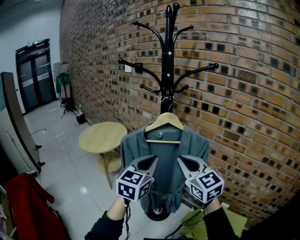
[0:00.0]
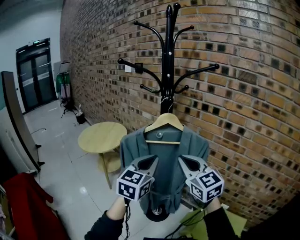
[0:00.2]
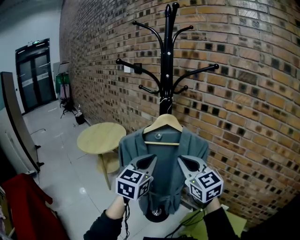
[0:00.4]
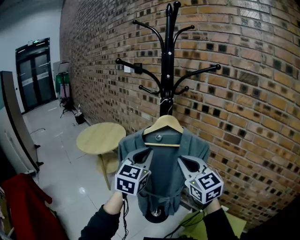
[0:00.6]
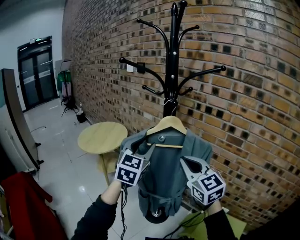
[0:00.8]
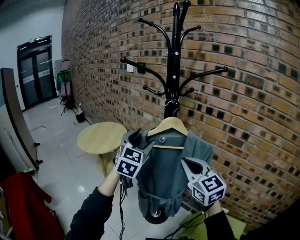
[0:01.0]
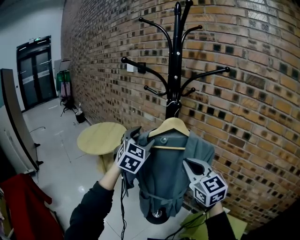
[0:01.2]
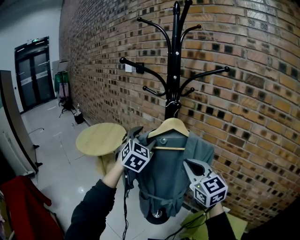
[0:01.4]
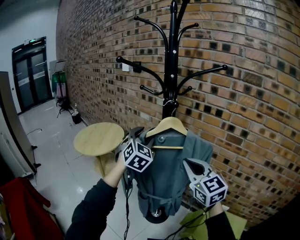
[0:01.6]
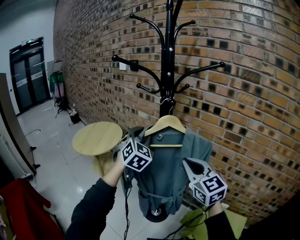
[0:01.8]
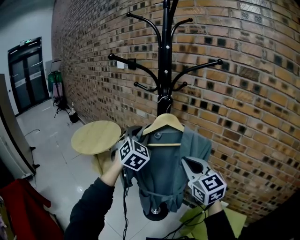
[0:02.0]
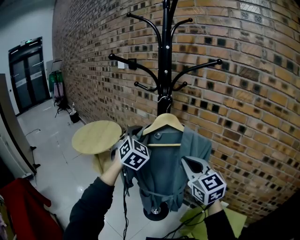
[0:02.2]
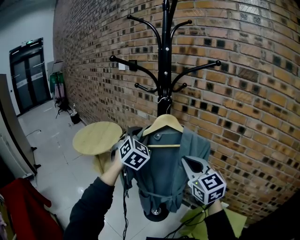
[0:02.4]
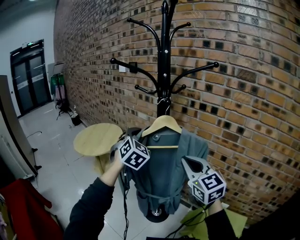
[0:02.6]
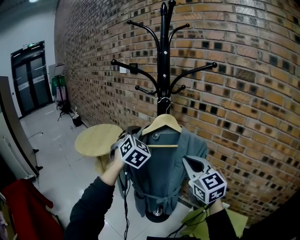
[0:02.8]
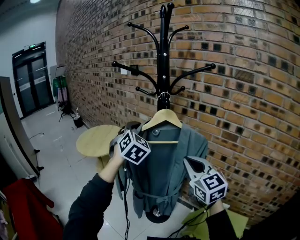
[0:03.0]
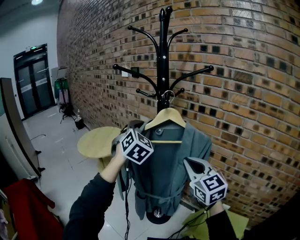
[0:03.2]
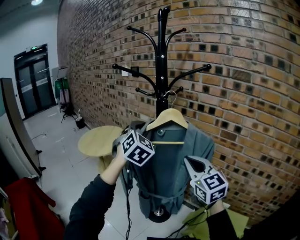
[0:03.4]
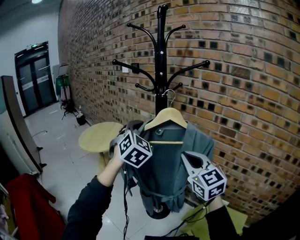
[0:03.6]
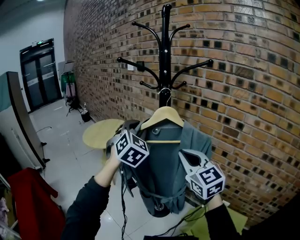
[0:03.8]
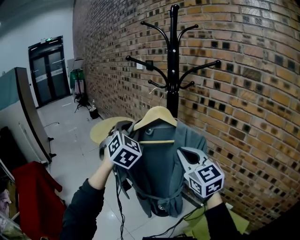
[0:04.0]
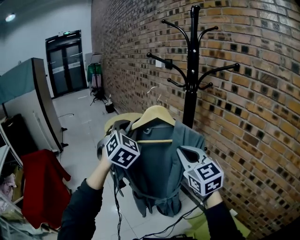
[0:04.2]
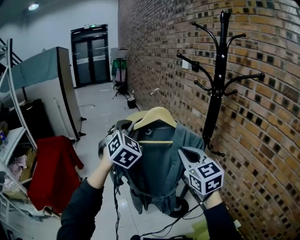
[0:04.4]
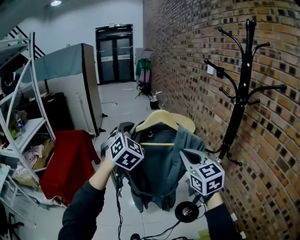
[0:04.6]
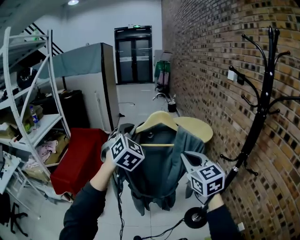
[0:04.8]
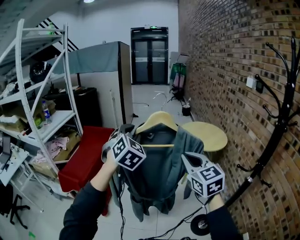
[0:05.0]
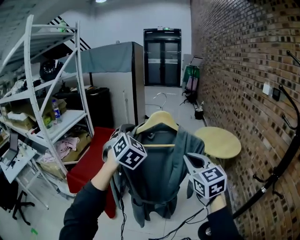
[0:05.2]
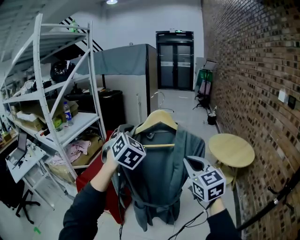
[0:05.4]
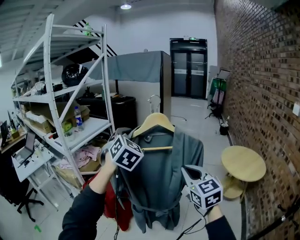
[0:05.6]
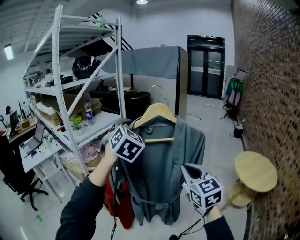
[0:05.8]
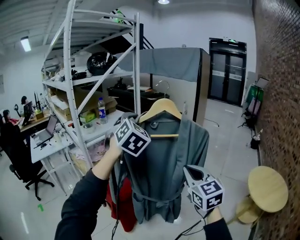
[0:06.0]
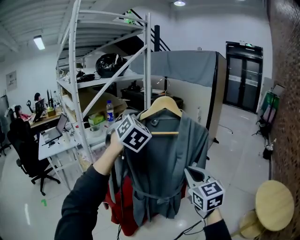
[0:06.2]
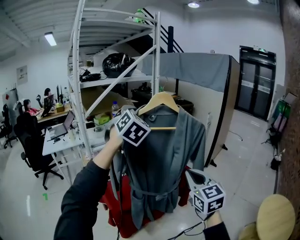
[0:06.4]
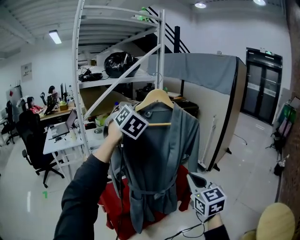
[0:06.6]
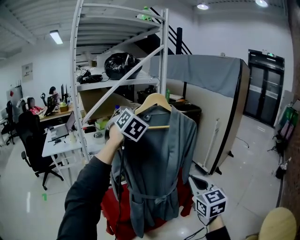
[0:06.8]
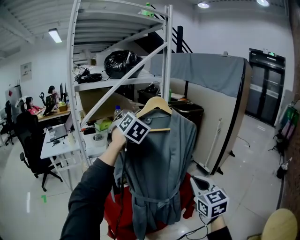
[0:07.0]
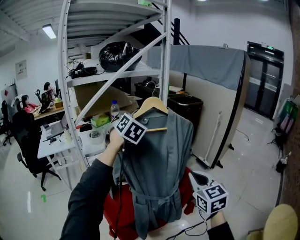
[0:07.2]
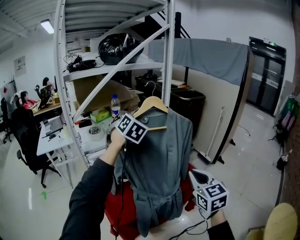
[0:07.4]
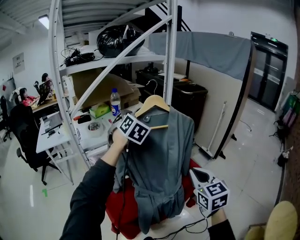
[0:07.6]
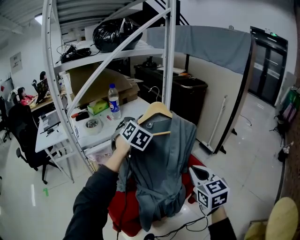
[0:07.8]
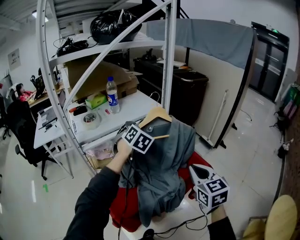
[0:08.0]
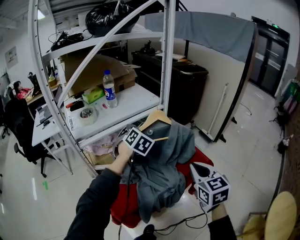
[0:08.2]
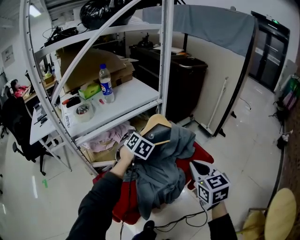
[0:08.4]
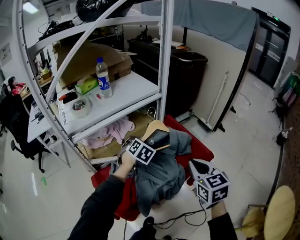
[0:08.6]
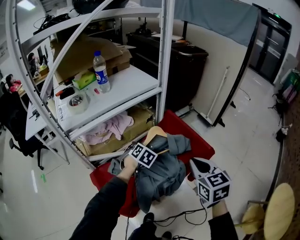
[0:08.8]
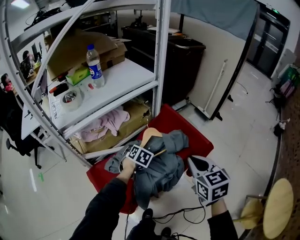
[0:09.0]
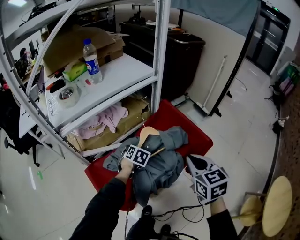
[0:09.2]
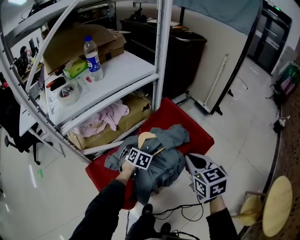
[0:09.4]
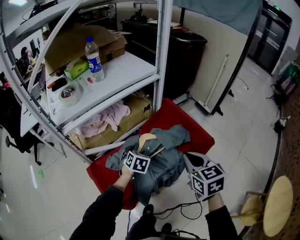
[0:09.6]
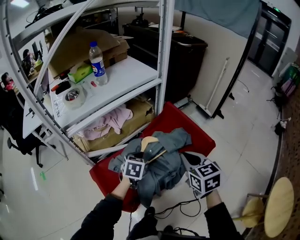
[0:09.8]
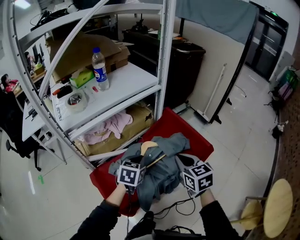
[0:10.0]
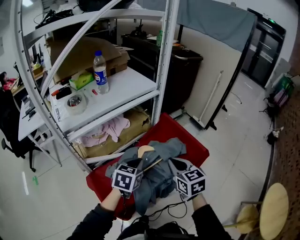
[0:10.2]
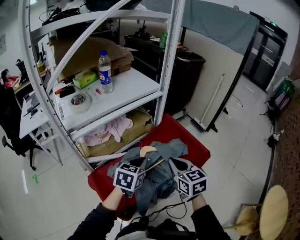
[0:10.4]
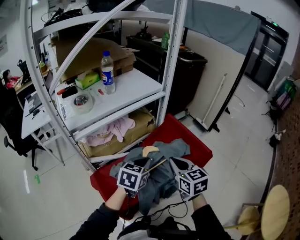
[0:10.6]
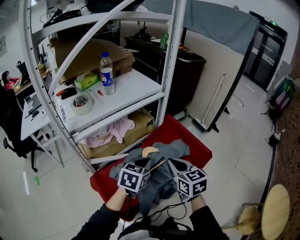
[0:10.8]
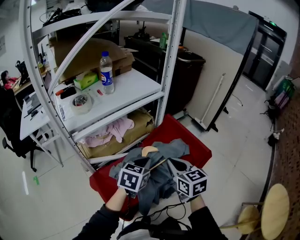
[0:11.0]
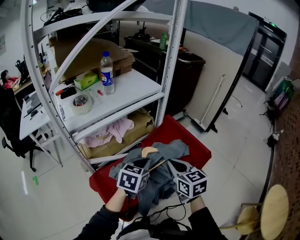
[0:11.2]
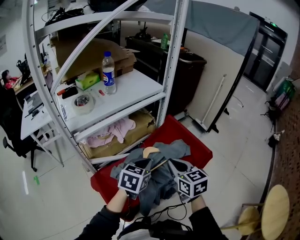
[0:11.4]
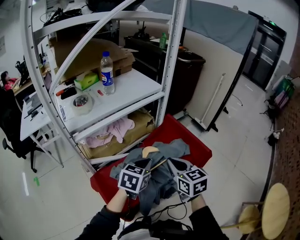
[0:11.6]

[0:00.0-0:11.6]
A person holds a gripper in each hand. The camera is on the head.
0:00.0 to 0:01.4: The left gripper heads forward, covering some 15 cm, swivels roughly 30 degrees, and opens up, while the right gripper shifts by some 5 cm.
0:01.4 to 0:02.8: The left gripper closes.
0:02.8 to 0:04.4: The left gripper shifts by roughly 30 cm, and changes its angle by approximately 30 degrees; the right gripper changes place by about 15 cm, and swivels some 30 degrees.
0:04.4 to 0:05.8: Both grippers are carried approximately 70 cm. The right gripper changes its angle by some 50 degrees. The left gripper changes its angle by approximately 50 degrees.
0:05.8 to 0:07.2: The two grippers travel together, roughly 50 cm. The right gripper rotates some 20 degrees; the left gripper changes its angle by roughly 30 degrees.
0:07.2 to 0:08.8: The left gripper goes some 50 cm downward, and angles its fingers downward, by roughly 40 degrees. The right gripper moves downward and forward, roughly 20 cm.
0:08.8 to 0:10.2: The right gripper goes approximately 10 cm to the left and downward; the left gripper shifts roughly 15 cm backward and upward, rotates roughly 30 degrees, and opens, then closes once more.
0:10.2 to 0:11.6: The grippers move only a little.

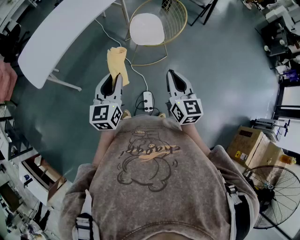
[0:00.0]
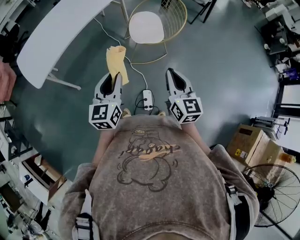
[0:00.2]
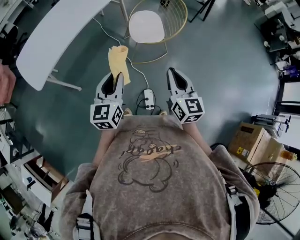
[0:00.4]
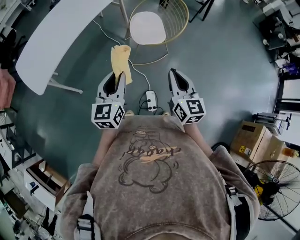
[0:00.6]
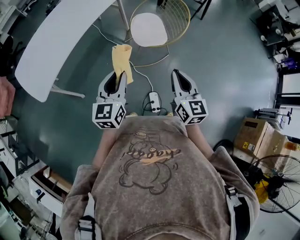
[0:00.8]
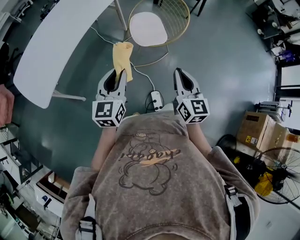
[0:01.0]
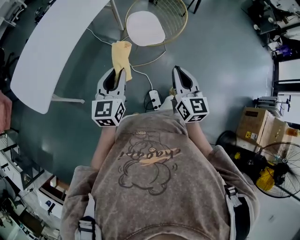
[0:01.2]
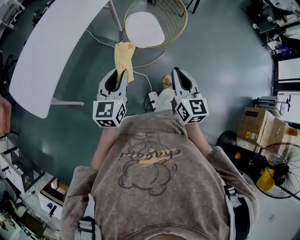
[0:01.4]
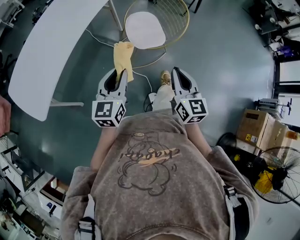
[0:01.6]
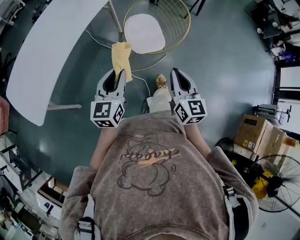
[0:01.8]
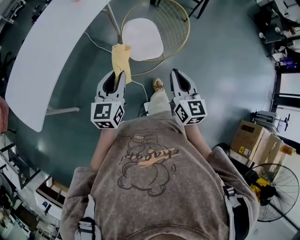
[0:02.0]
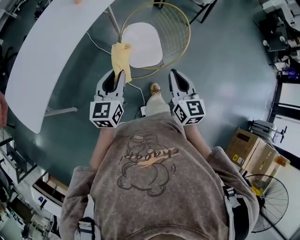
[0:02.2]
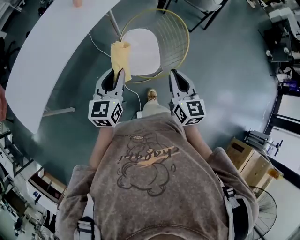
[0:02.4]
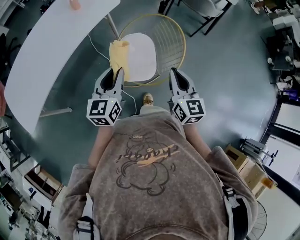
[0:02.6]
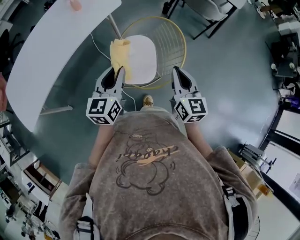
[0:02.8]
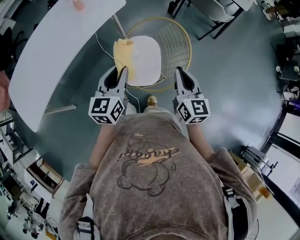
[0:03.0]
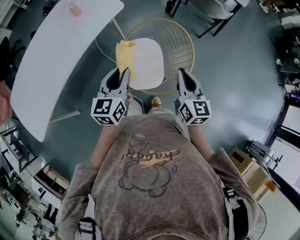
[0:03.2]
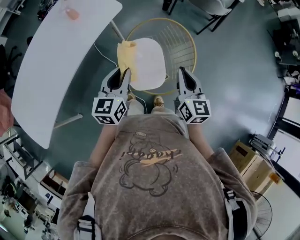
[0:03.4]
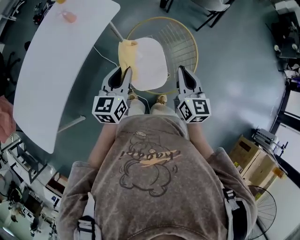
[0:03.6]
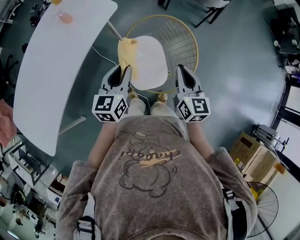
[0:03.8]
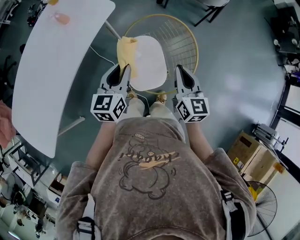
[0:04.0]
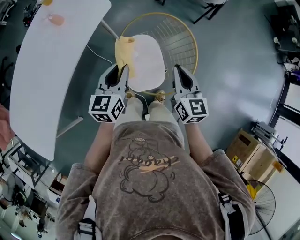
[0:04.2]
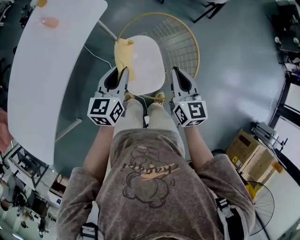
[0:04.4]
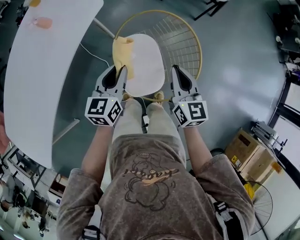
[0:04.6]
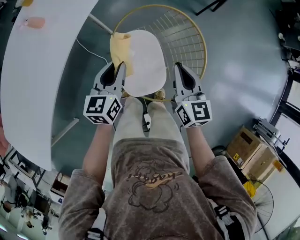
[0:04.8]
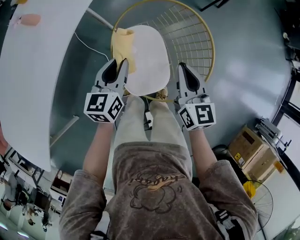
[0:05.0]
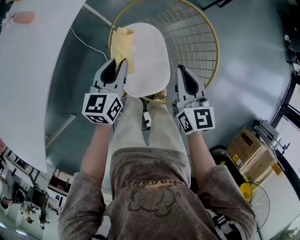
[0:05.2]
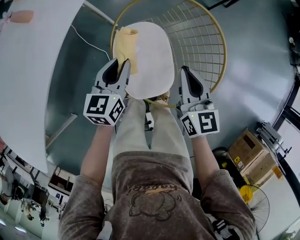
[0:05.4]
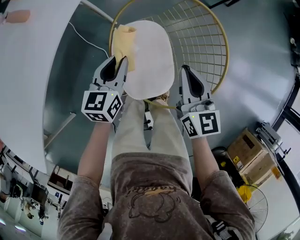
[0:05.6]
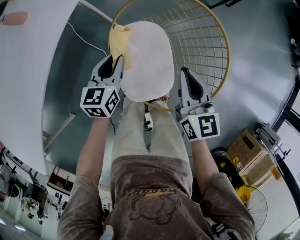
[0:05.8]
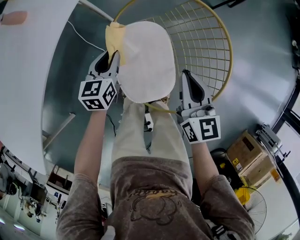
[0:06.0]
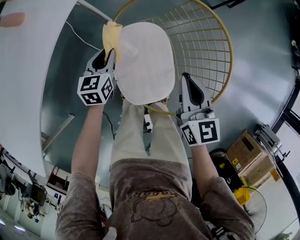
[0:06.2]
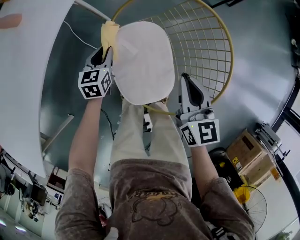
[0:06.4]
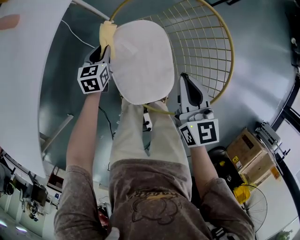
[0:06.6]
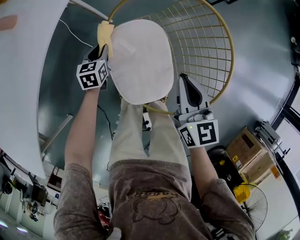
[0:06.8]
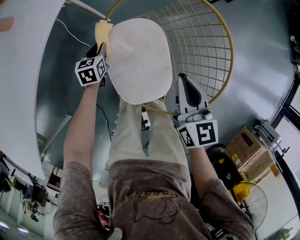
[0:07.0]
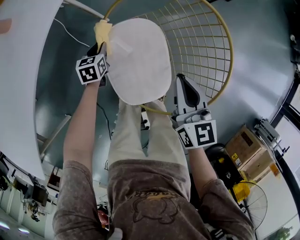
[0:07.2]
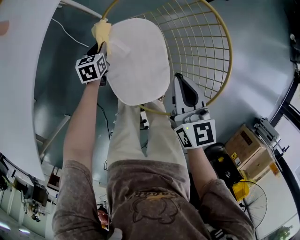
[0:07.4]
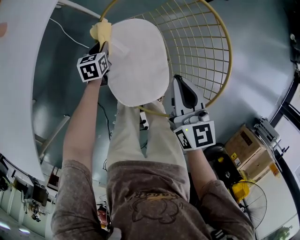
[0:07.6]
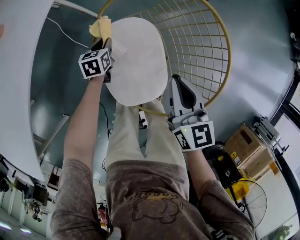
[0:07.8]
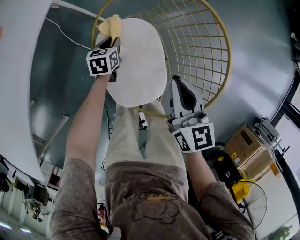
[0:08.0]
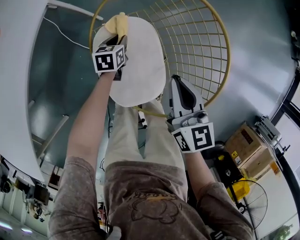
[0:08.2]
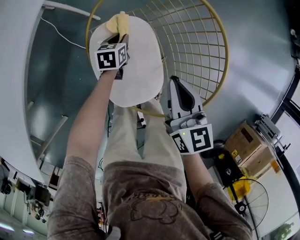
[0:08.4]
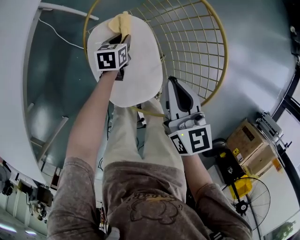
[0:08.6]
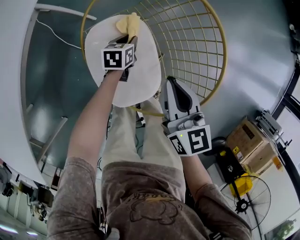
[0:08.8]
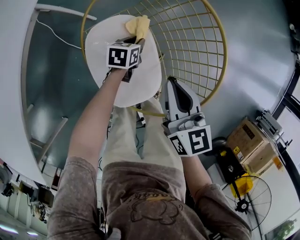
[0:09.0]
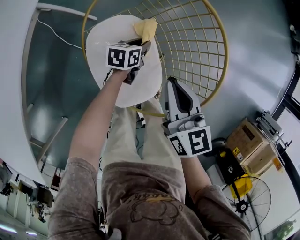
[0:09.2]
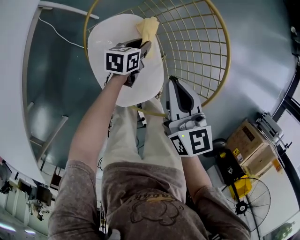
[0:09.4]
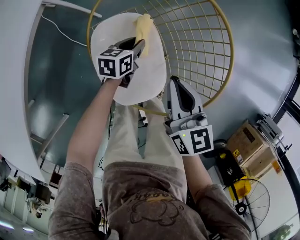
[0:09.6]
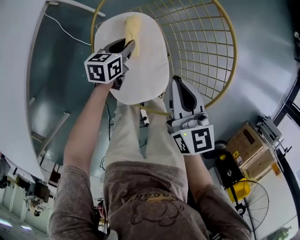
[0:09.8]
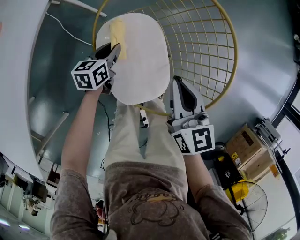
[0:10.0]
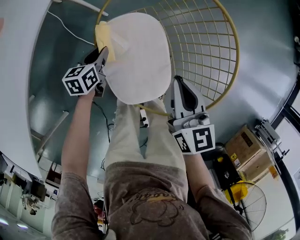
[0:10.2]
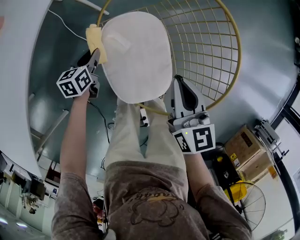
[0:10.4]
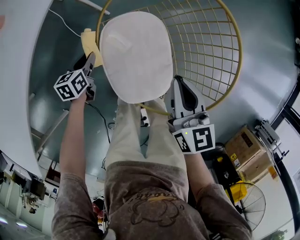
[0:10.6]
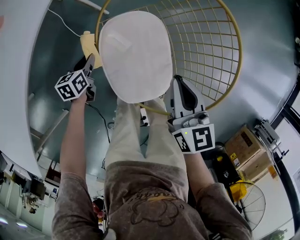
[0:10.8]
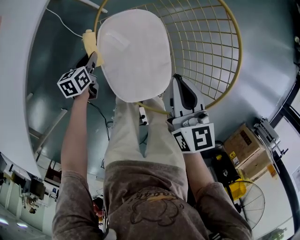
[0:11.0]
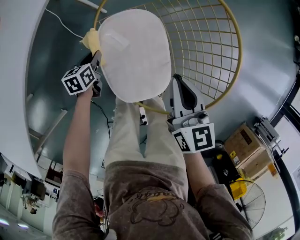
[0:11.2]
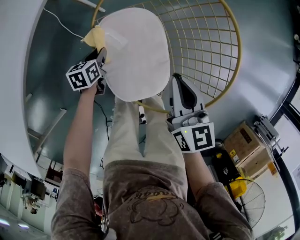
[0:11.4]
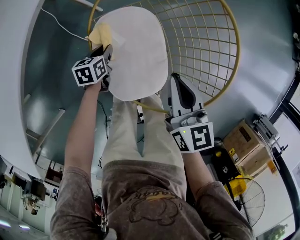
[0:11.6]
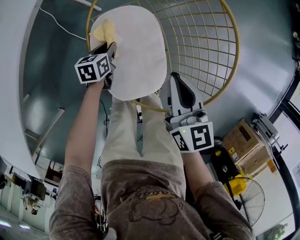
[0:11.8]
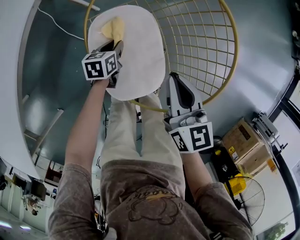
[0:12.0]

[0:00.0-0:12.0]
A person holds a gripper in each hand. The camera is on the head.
0:00.0 to 0:01.6: Both grippers move forward and to the left, about 15 cm.
0:01.6 to 0:03.0: Both grippers move forward and to the right, approximately 35 cm.
0:03.0 to 0:04.4: The right gripper moves downward and forward, about 10 cm. Meanwhile the left gripper heads forward and downward, covering about 15 cm.
0:04.4 to 0:06.0: The right gripper heads downward, covering roughly 10 cm. Meanwhile the left gripper is displaced downward by approximately 20 cm.
0:06.0 to 0:07.6: The left gripper heads downward, covering roughly 15 cm.
0:07.6 to 0:09.0: The left gripper heads to the right, covering some 20 cm, and swivels approximately 20 degrees.
0:09.0 to 0:10.4: The left gripper shifts roughly 20 cm to the left, and rotates approximately 20 degrees.
0:10.4 to 0:12.0: The left gripper shifts about 15 cm to the right and downward.
